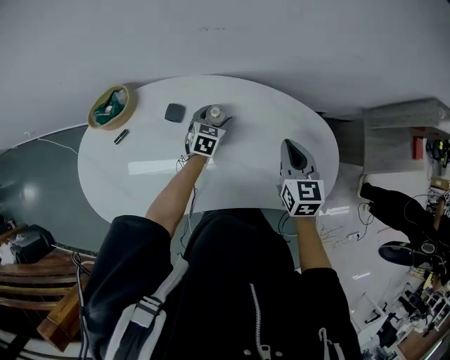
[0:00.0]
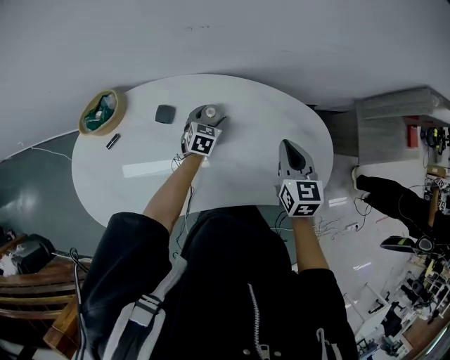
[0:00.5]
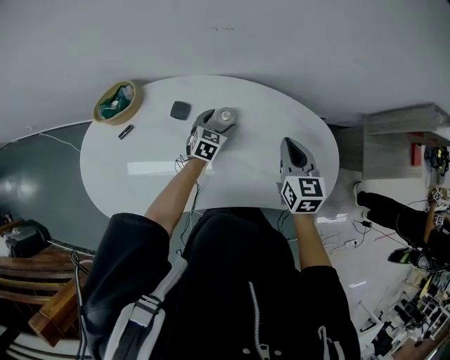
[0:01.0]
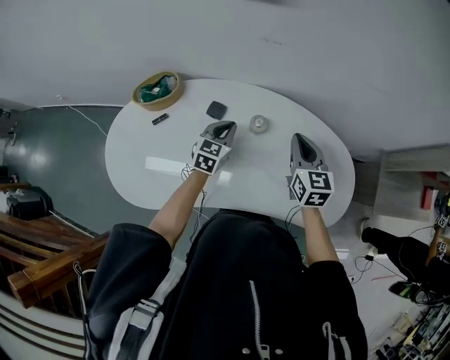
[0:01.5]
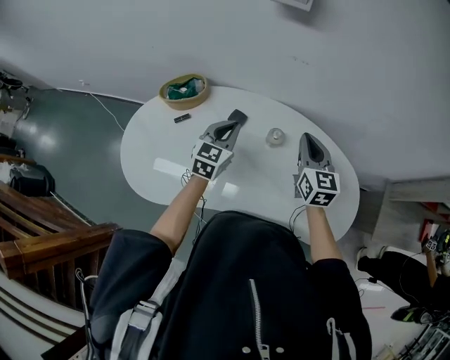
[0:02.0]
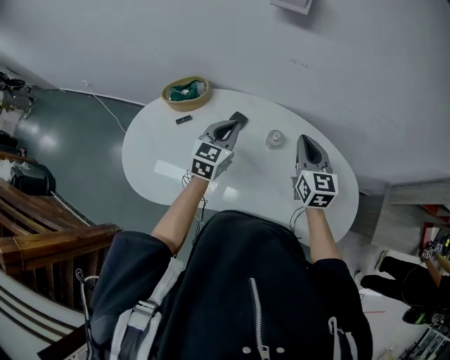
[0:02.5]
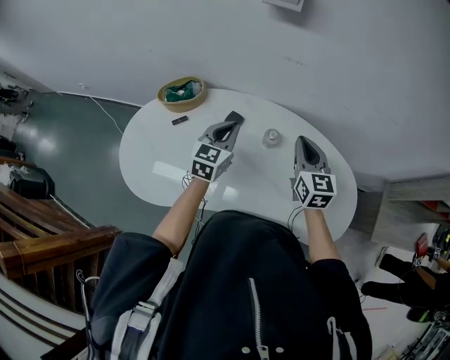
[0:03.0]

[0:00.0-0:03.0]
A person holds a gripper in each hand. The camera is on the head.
0:00.0 to 0:01.5: The left gripper travels upward, backward and to the left by about 15 cm, and closes. The right gripper shifts approximately 5 cm to the left.
0:01.5 to 0:03.0: The right gripper changes place by roughly 5 cm; the left gripper goes approximately 10 cm upward.

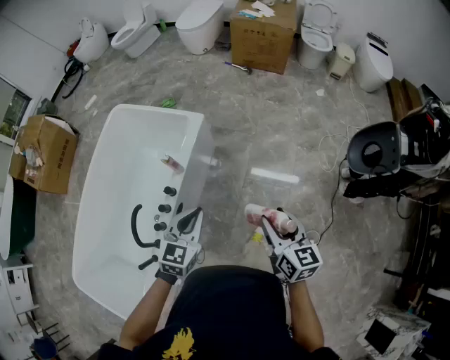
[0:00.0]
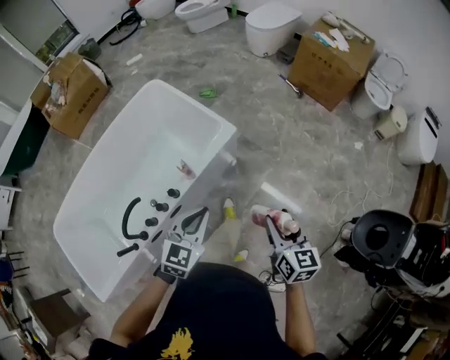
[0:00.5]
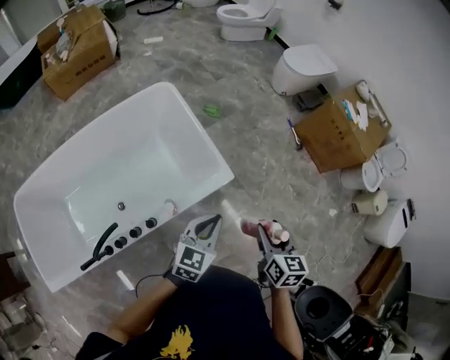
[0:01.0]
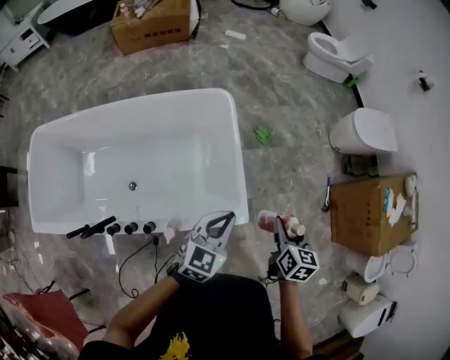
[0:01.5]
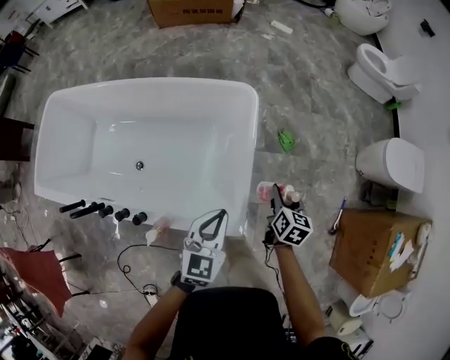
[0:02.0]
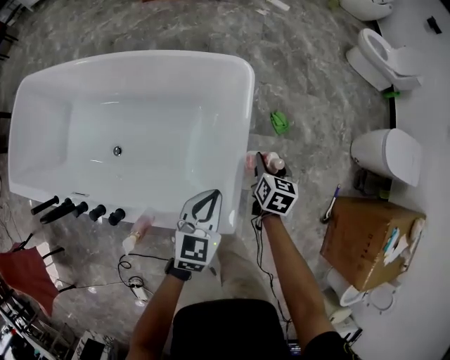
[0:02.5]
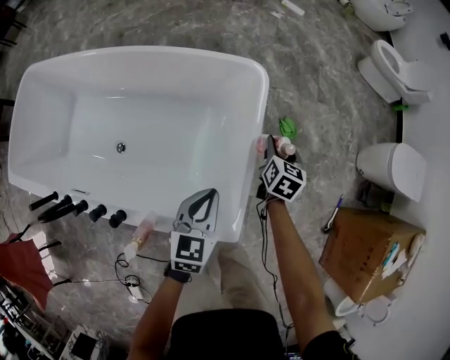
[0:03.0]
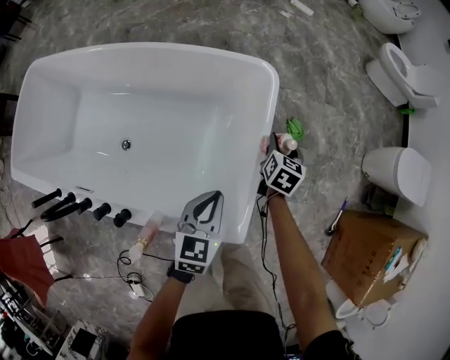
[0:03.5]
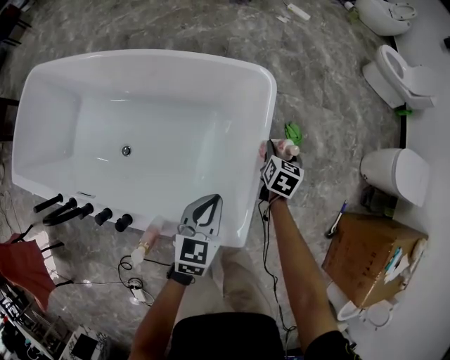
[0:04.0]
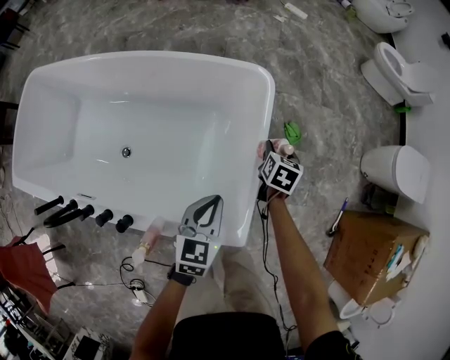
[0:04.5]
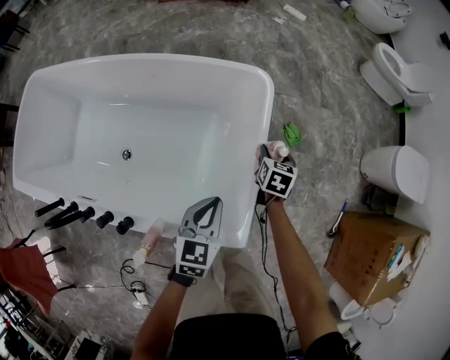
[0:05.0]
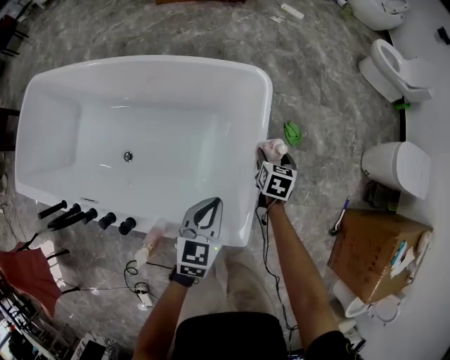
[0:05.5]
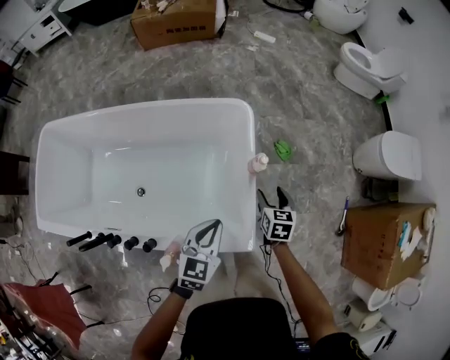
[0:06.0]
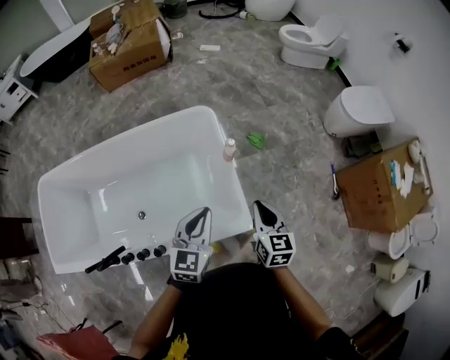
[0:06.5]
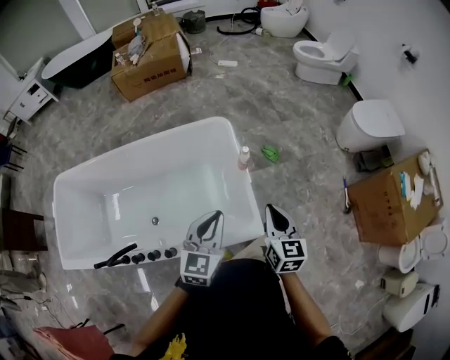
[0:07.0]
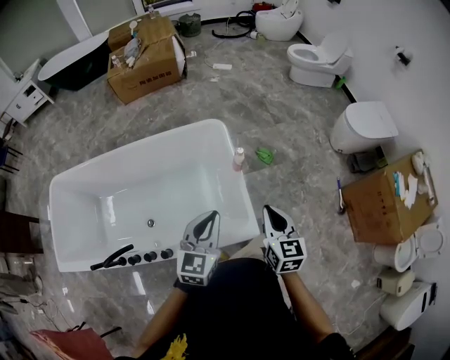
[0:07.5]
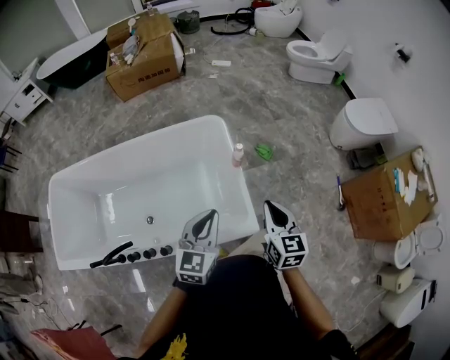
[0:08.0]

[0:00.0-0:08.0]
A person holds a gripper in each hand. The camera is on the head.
0:00.0 to 0:02.0: Both grippers are carried some 80 cm. The right gripper swivels about 60 degrees, while the left gripper turns by about 70 degrees.
0:02.0 to 0:04.0: The right gripper moves forward, downward and to the left, roughly 25 cm, while the left gripper shifts some 20 cm downward, to the left and forward.
0:04.0 to 0:06.0: The left gripper travels upward and backward by approximately 10 cm; the right gripper moves backward and upward, some 20 cm.
0:06.0 to 0:08.0: The left gripper moves upward and backward, about 15 cm. Meanwhile the right gripper travels upward and backward by some 30 cm, swivels about 20 degrees, and closes up.

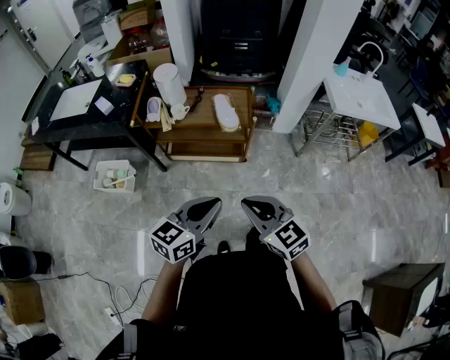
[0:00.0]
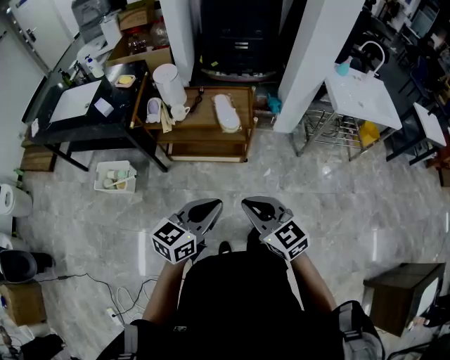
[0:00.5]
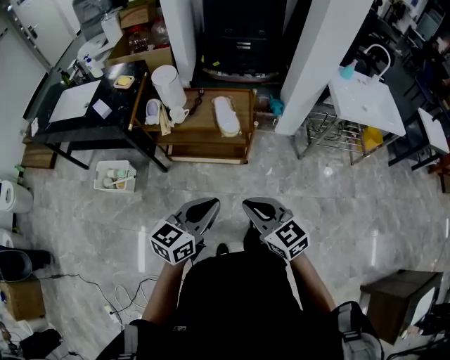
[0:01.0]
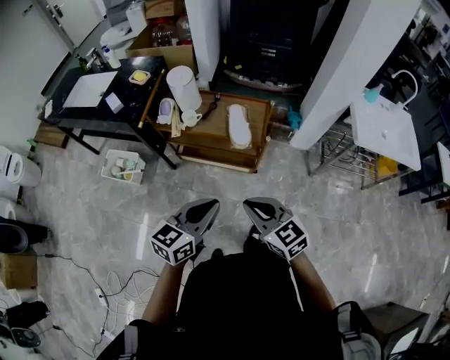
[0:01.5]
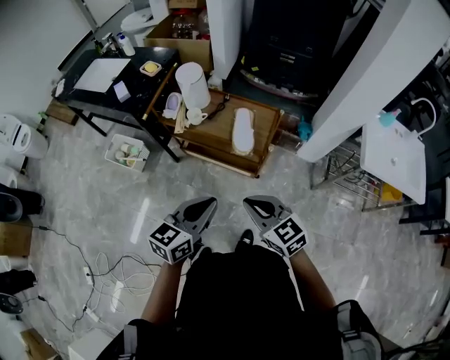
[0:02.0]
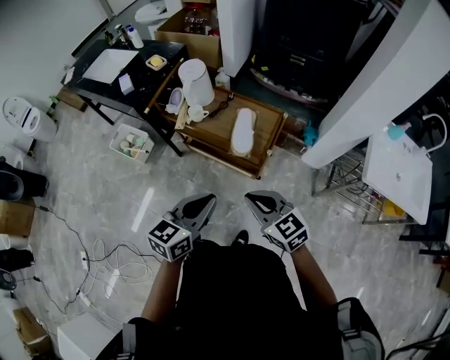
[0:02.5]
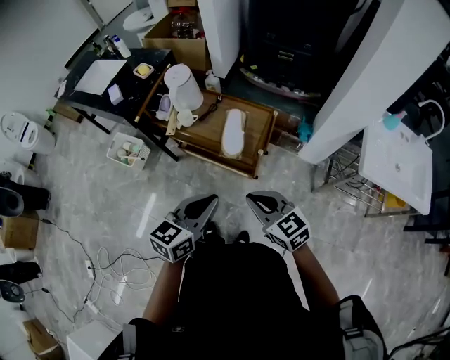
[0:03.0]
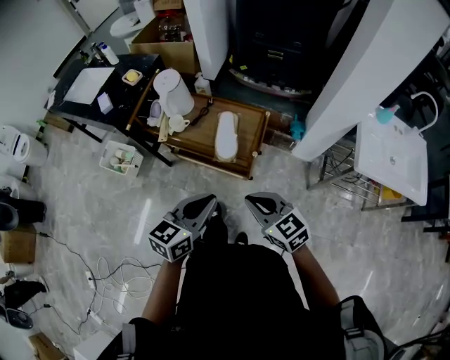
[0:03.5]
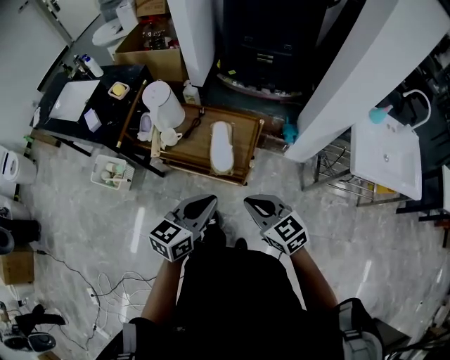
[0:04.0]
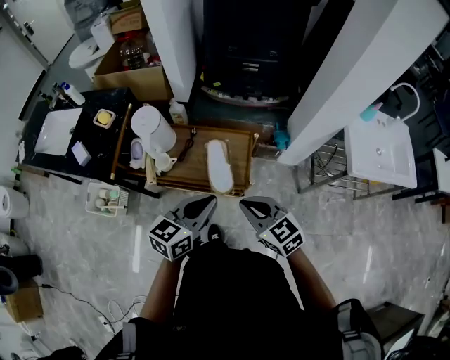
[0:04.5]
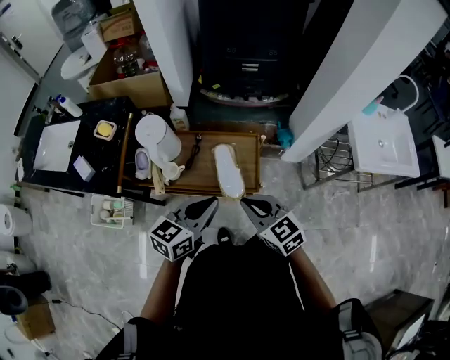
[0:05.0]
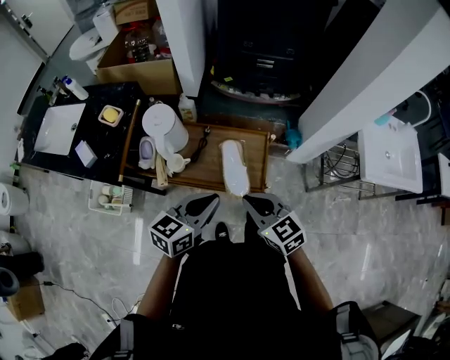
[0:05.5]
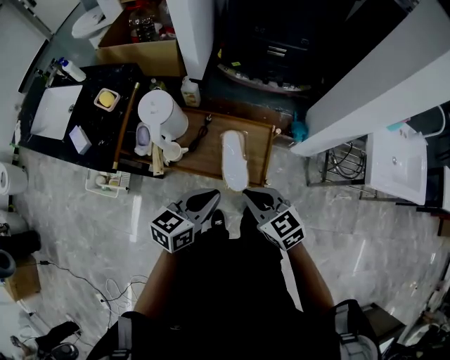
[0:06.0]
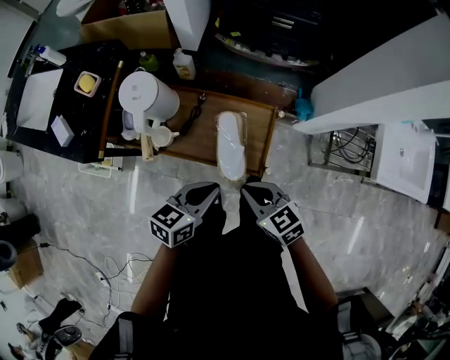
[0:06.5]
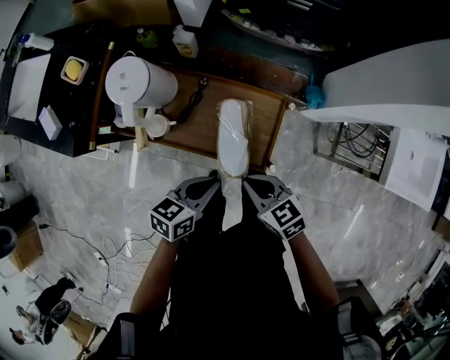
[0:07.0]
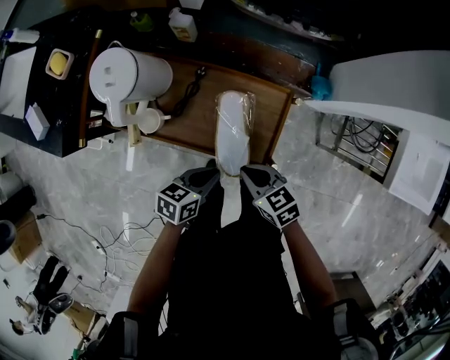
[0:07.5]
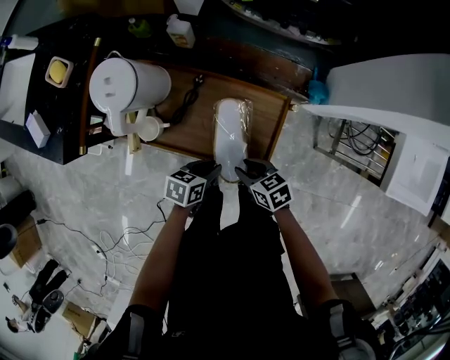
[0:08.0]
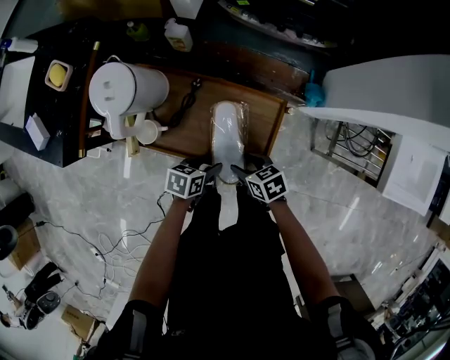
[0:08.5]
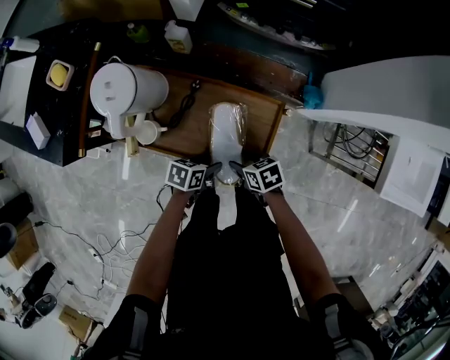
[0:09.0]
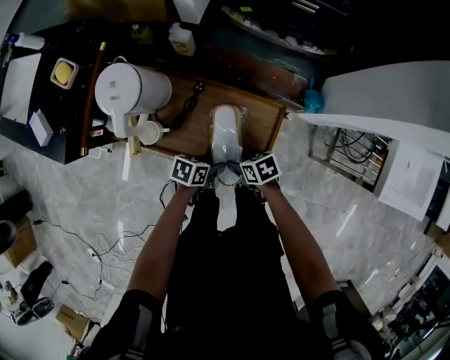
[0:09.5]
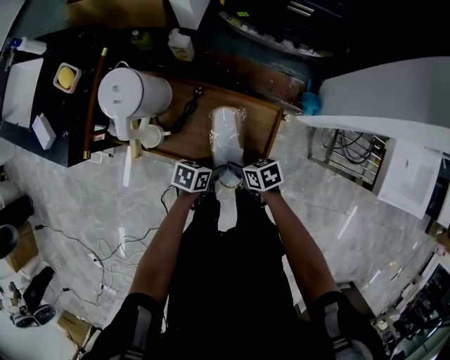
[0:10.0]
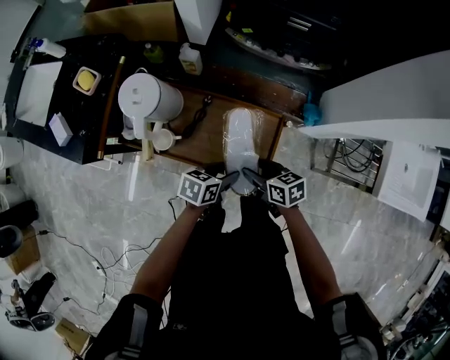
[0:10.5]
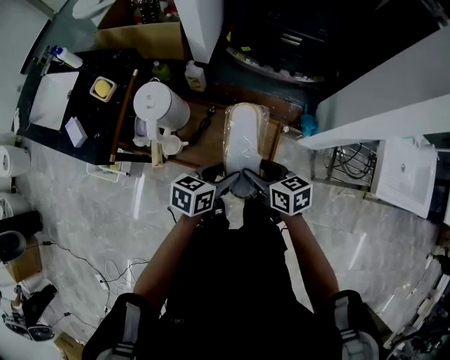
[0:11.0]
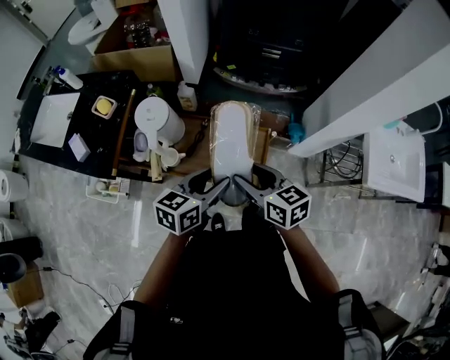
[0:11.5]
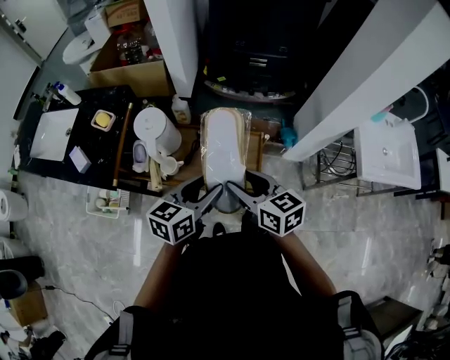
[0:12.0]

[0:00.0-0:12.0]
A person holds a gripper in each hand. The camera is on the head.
0:00.0 to 0:02.0: The two grippers go about 20 cm forward and to the right. The left gripper changes its angle by approximately 20 degrees.
0:02.0 to 0:04.0: Both grippers move forward and to the right, about 15 cm.
0:04.0 to 0:06.0: Both grippers travel together forward and to the left, about 15 cm.
0:06.0 to 0:08.0: The grippers both shift downward by about 25 cm. The right gripper rotates roughly 30 degrees, and opens its fingers, while the left gripper rotates about 30 degrees.
0:08.0 to 0:10.0: The left gripper opens its fingers, while the right gripper opens up.
0:10.0 to 0:12.0: The two grippers go approximately 35 cm upward. The right gripper rotates roughly 40 degrees, while the left gripper turns by some 40 degrees.

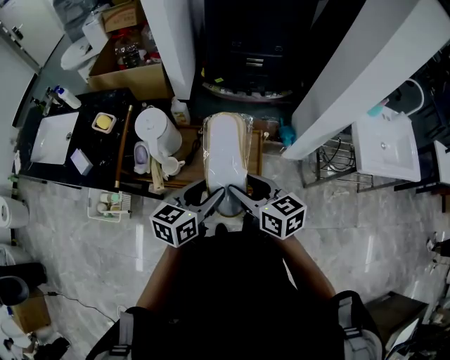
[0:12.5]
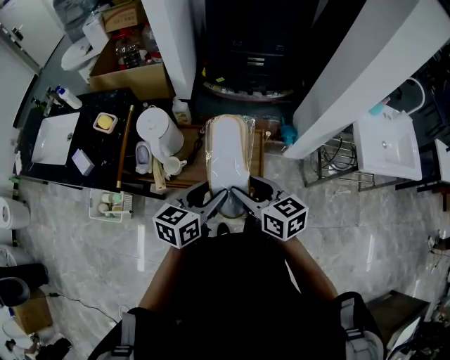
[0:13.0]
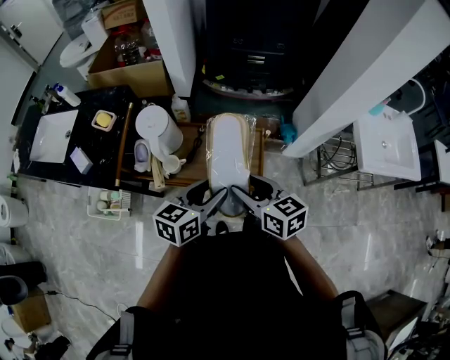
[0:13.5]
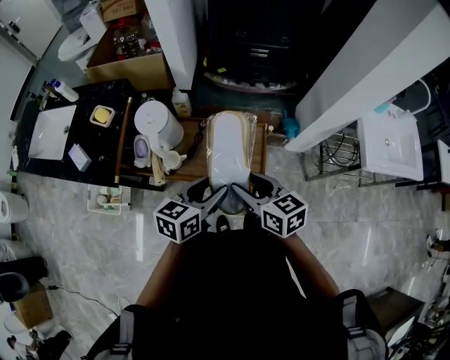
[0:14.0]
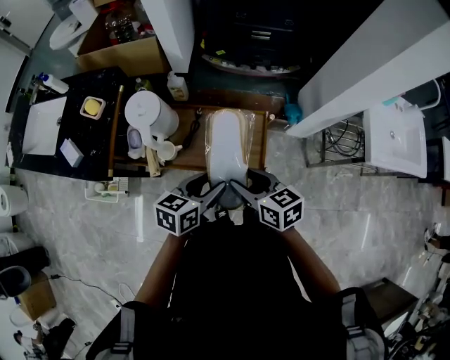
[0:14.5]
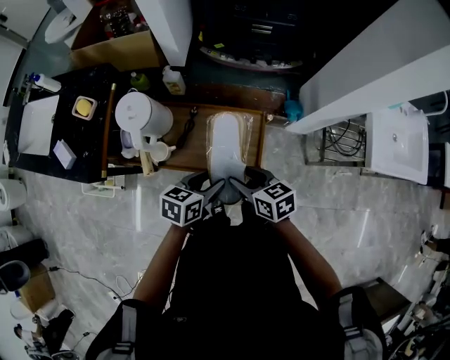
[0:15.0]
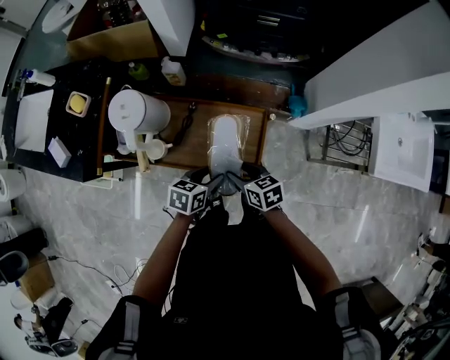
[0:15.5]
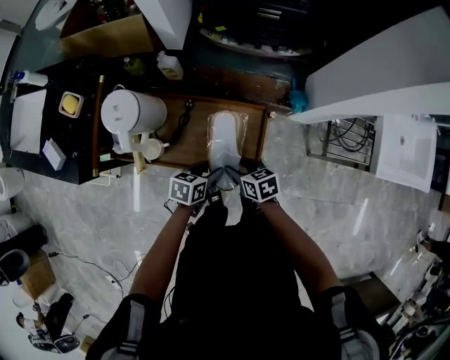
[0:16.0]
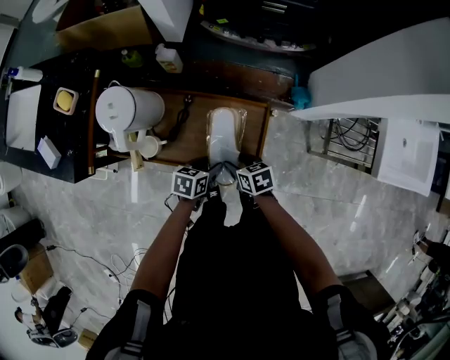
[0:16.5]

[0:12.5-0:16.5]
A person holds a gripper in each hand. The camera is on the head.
0:12.5 to 0:14.5: Both grippers travel together downward, about 5 cm.
0:14.5 to 0:16.5: Both grippers travel together downward, roughly 25 cm. The right gripper swivels roughly 20 degrees. The left gripper changes its angle by approximately 20 degrees.
